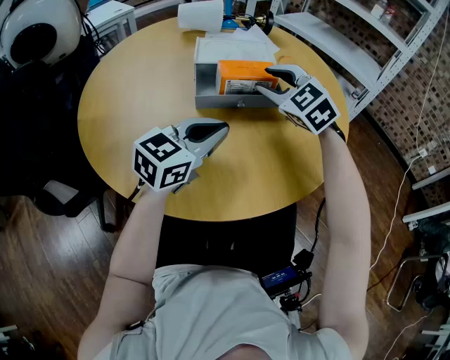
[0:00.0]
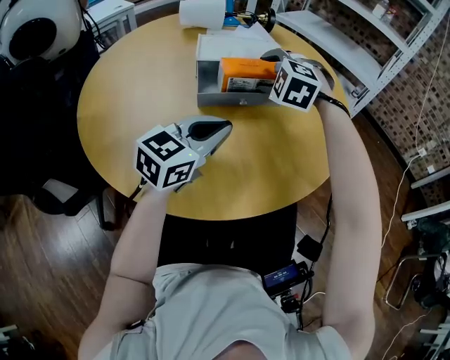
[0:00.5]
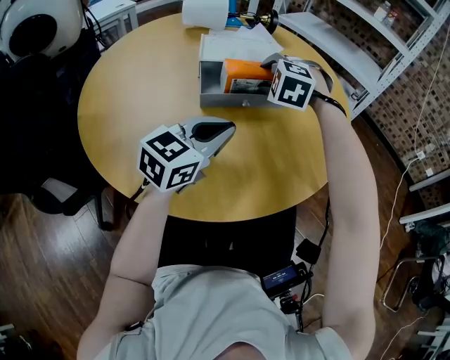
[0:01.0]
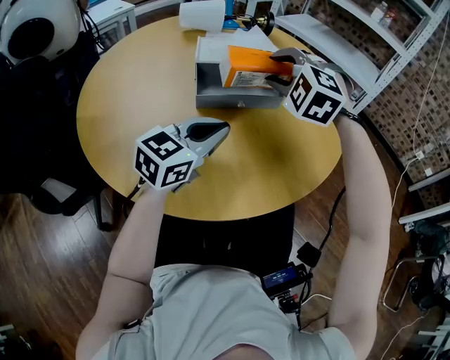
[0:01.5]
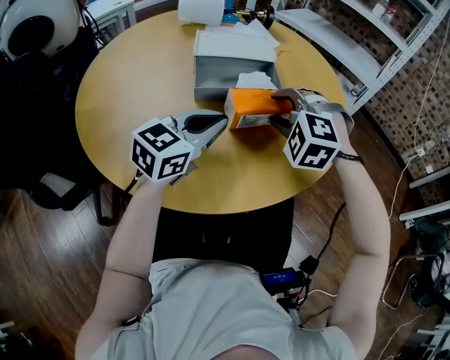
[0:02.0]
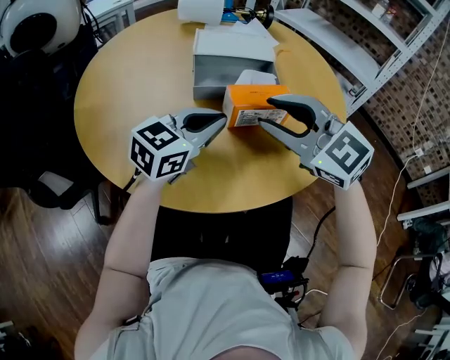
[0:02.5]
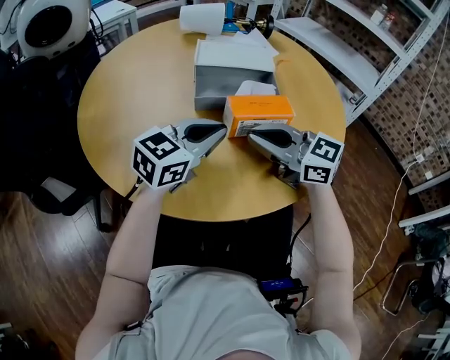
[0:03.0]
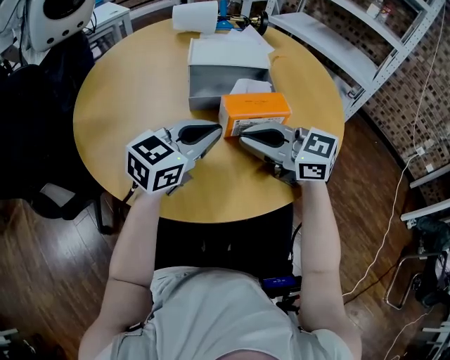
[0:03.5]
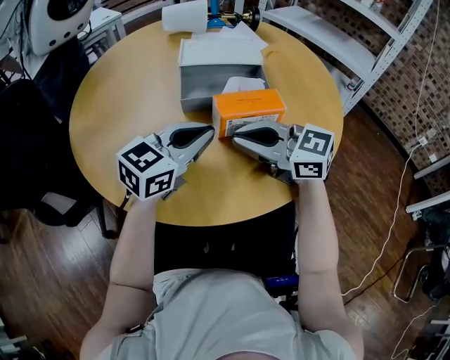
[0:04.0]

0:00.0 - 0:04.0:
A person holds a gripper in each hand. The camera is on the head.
0:00.0 - 0:02.0: The right gripper travels backward and to the right by approximately 10 cm, and rotates about 40 degrees.
0:02.0 - 0:04.0: The right gripper moves about 10 cm upward and comes back, points its fingers approximately 40 degrees further upward, and closes its fingers.

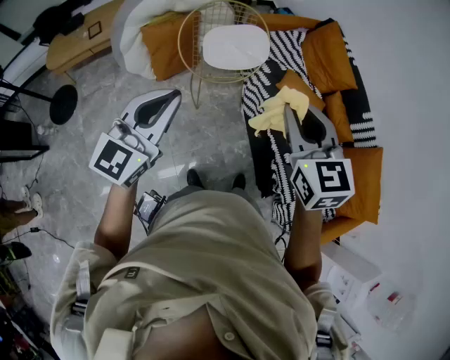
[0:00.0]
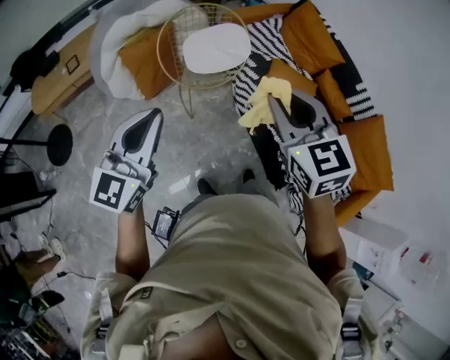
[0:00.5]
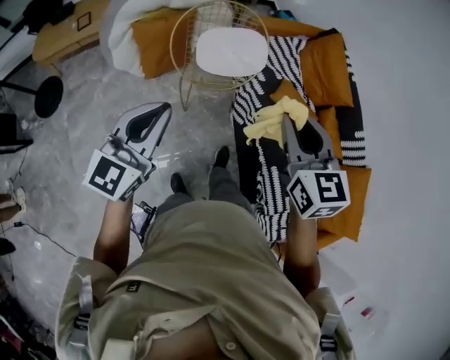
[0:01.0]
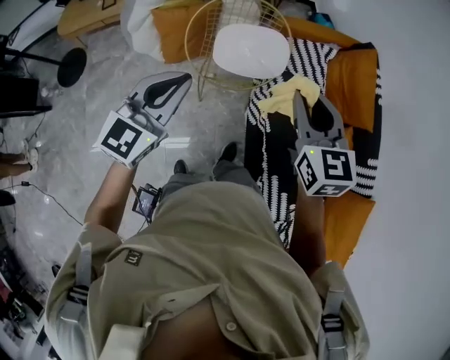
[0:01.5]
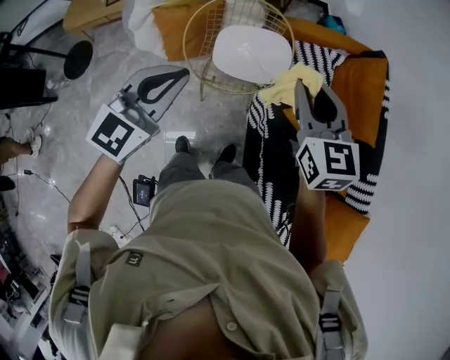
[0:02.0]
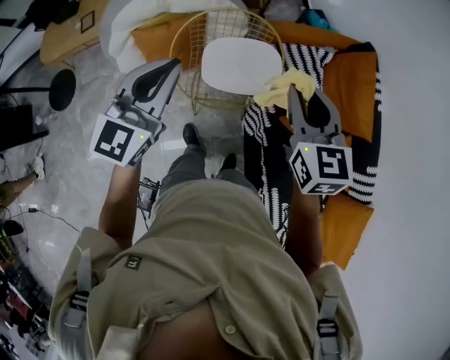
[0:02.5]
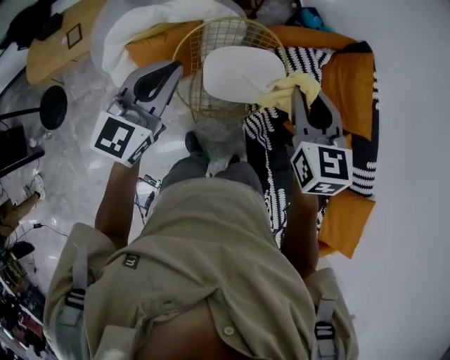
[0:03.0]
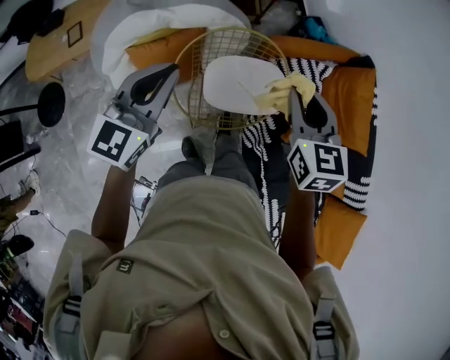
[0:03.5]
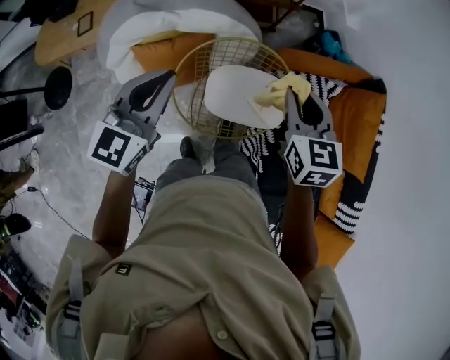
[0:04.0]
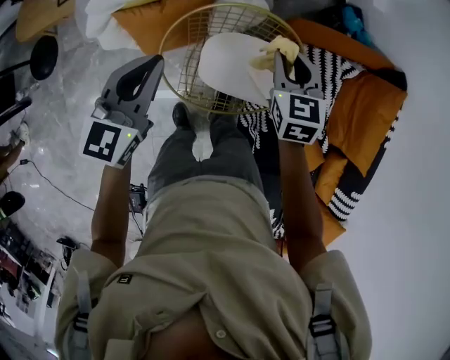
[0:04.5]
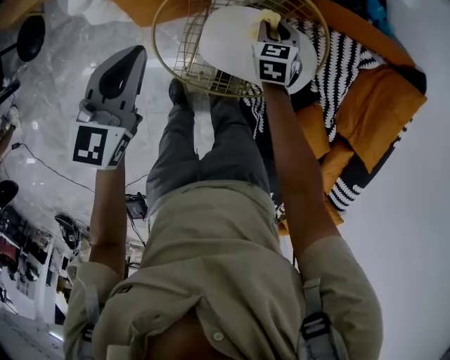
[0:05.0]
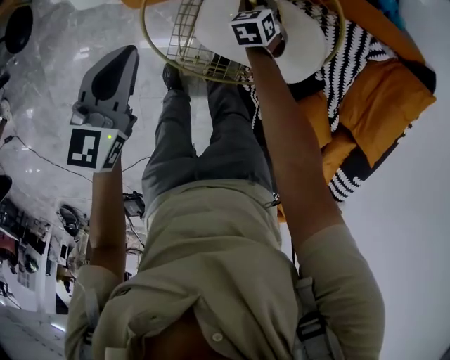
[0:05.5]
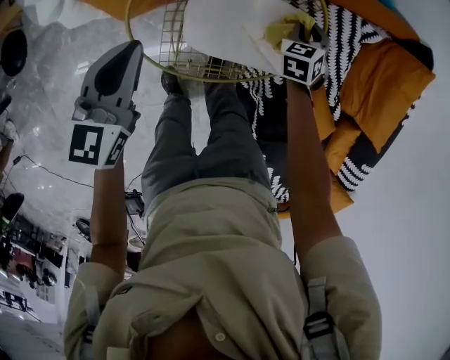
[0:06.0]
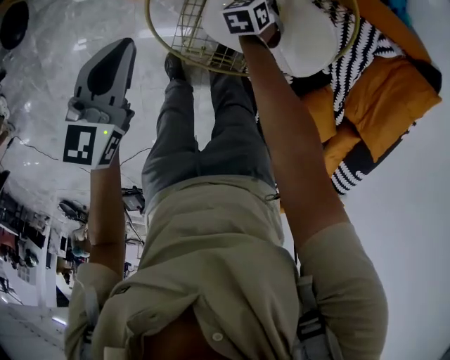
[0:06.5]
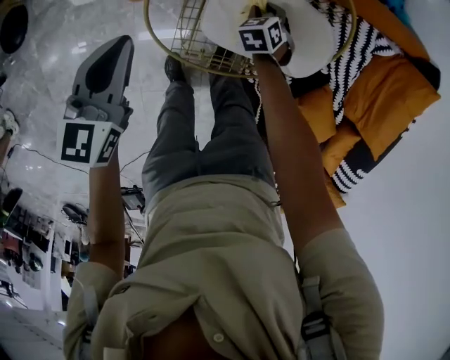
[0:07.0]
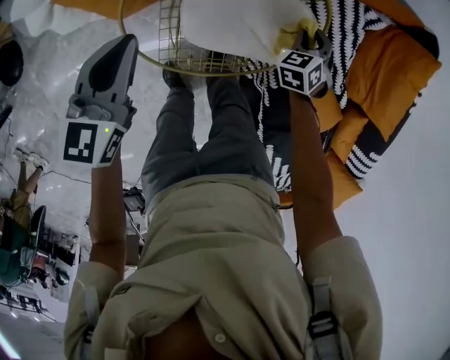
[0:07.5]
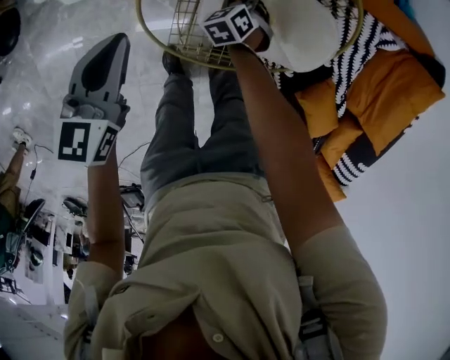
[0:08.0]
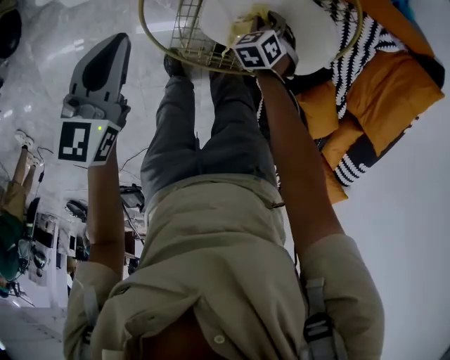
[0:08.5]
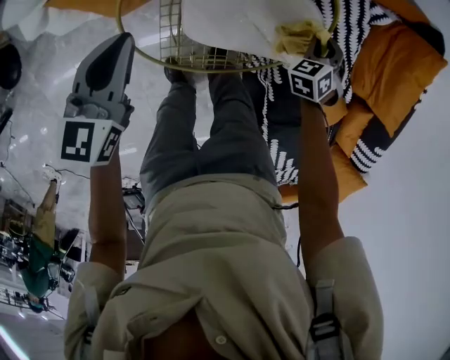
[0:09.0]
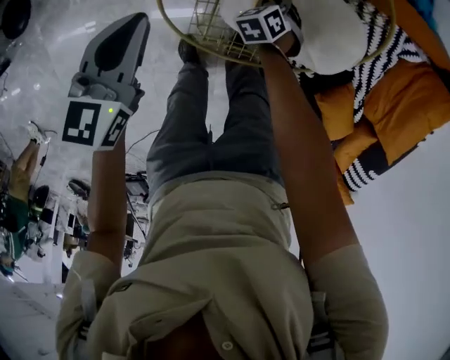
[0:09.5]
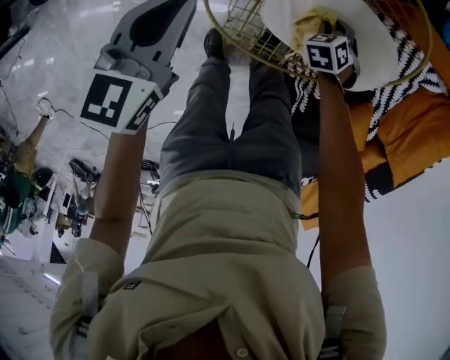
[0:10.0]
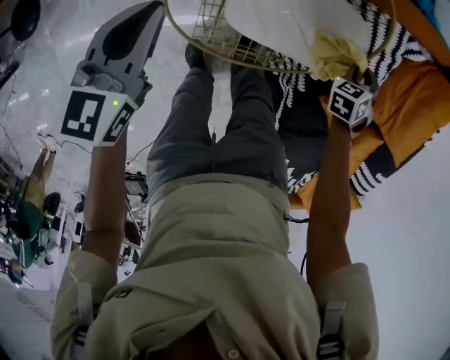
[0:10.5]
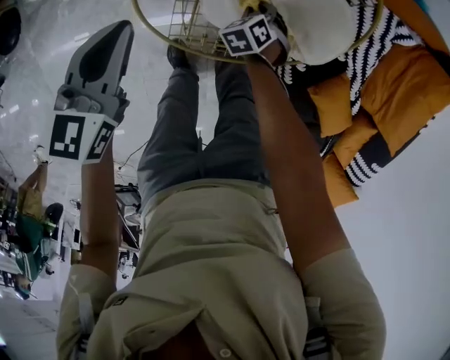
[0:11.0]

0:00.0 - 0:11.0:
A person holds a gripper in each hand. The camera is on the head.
0:00.0 - 0:02.0: Both grippers move forward, about 30 cm.
0:02.0 - 0:03.5: Both grippers travel together forward and to the left, approximately 25 cm.
0:03.5 - 0:05.5: The left gripper shifts some 30 cm downward, and rotates roughly 30 degrees. Meanwhile the right gripper heads downward, covering some 60 cm, and tips its fingers downward by some 40 degrees.
0:05.5 - 0:07.5: The left gripper moves about 5 cm, while the right gripper swings up and down, approximately 10 cm each way, with 2 reversals, and rotates approximately 20 degrees.
0:07.5 - 0:09.0: The right gripper goes downward and returns, about 15 cm each way.
0:09.0 - 0:11.0: The right gripper goes up and down, approximately 15 cm each way, reversing 2 times, and swivels some 20 degrees, while the left gripper ends up about 10 cm from where it was.

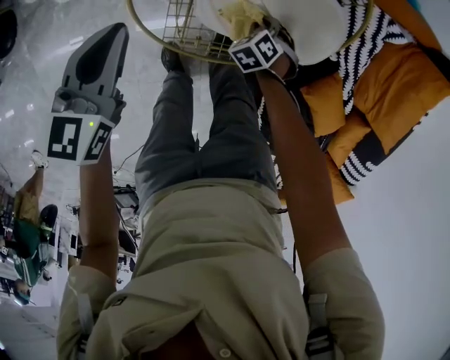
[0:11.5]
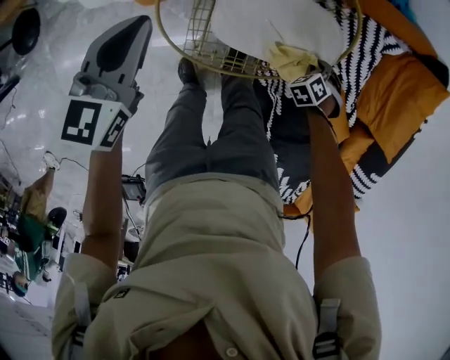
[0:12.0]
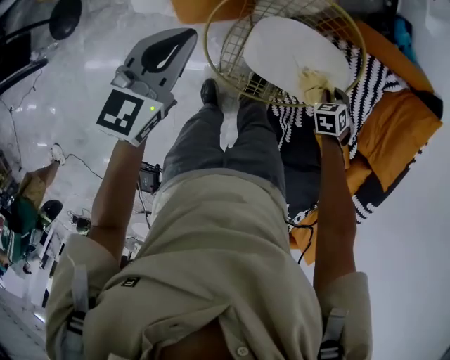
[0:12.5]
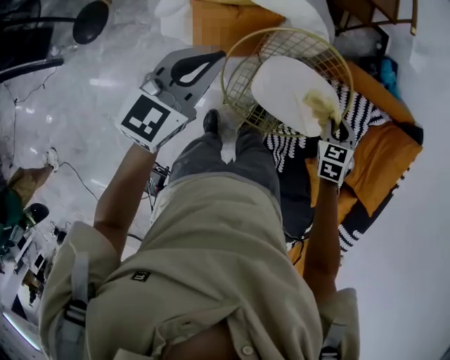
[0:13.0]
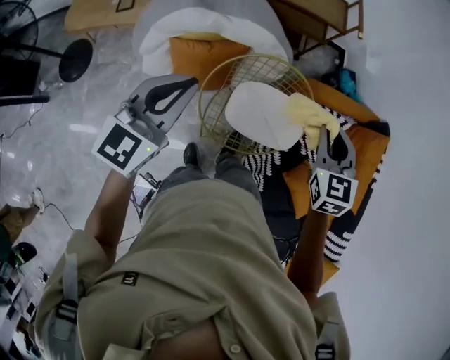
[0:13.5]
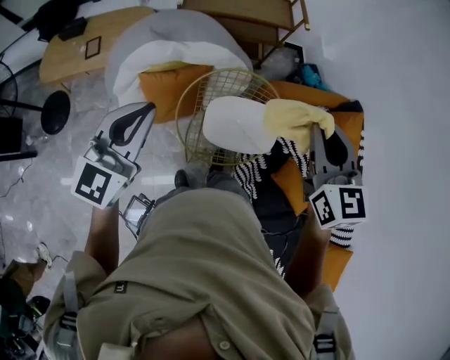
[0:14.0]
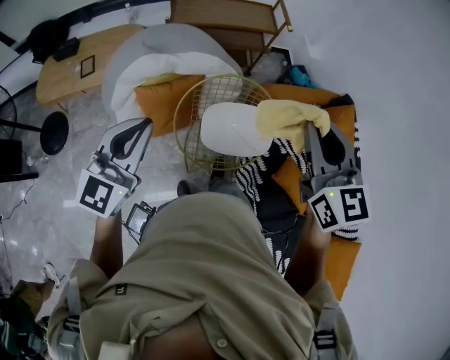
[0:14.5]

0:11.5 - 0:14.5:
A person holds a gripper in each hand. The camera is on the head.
0:11.5 - 0:13.0: The grippers both shift upward by some 30 cm. The right gripper turns by some 30 degrees.
0:13.0 - 0:14.5: The left gripper is displaced upward and backward by some 20 cm. Meanwhile the right gripper moves upward, approximately 50 cm, and points its fingers some 40 degrees further upward.

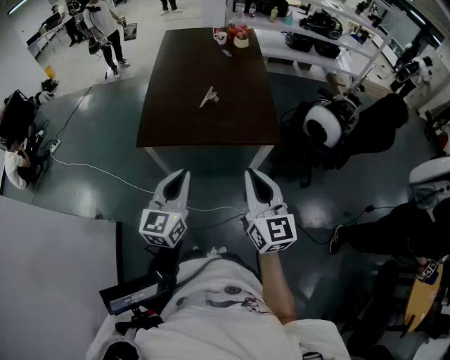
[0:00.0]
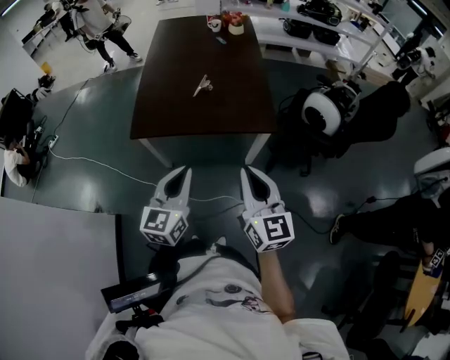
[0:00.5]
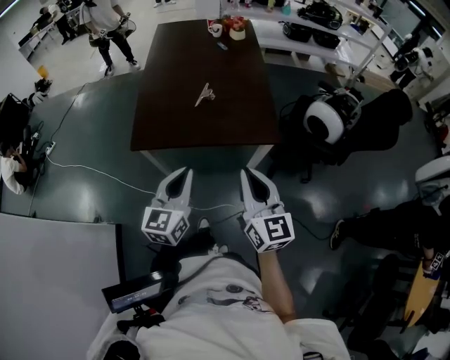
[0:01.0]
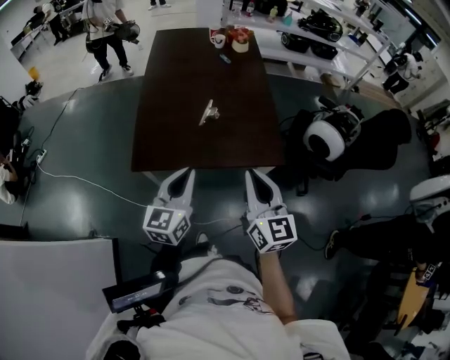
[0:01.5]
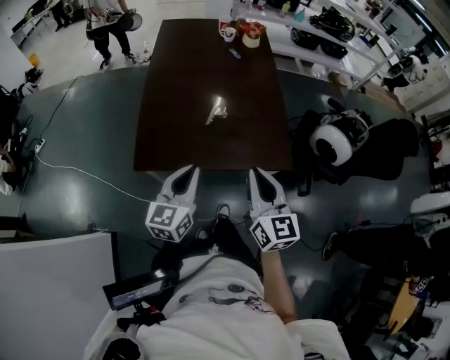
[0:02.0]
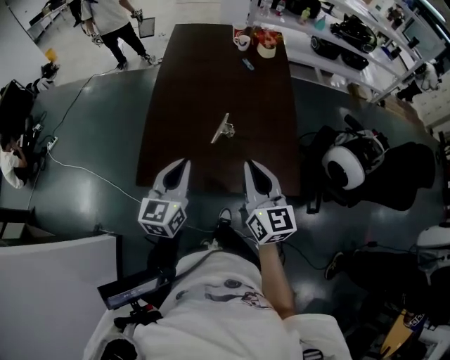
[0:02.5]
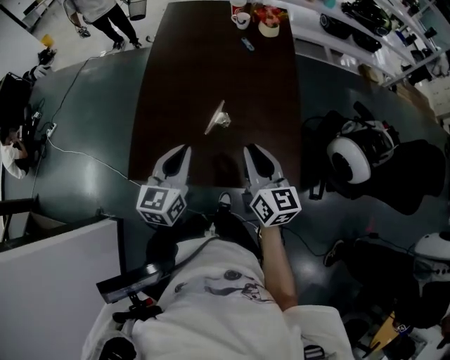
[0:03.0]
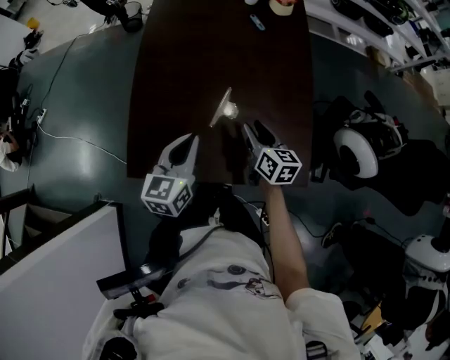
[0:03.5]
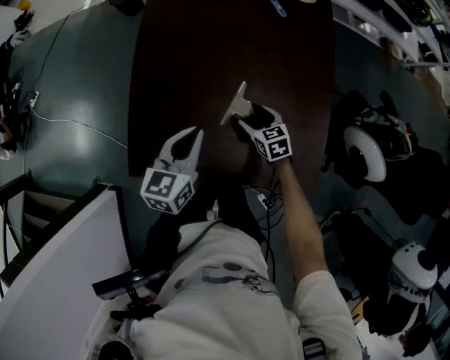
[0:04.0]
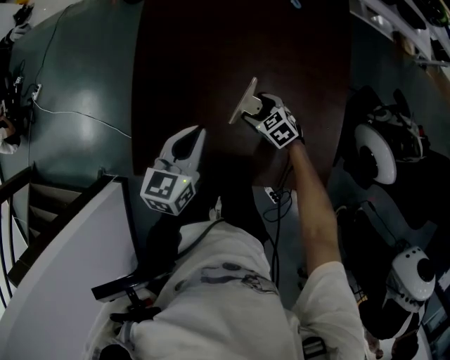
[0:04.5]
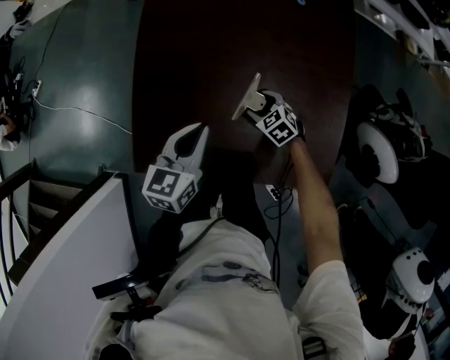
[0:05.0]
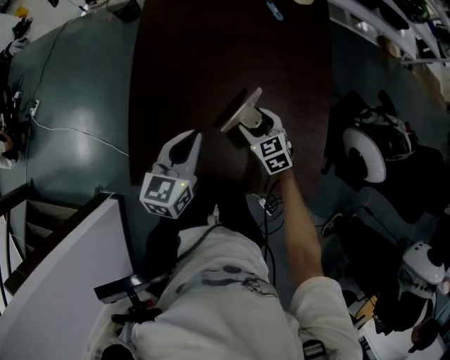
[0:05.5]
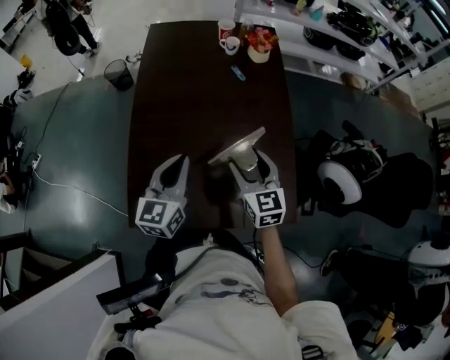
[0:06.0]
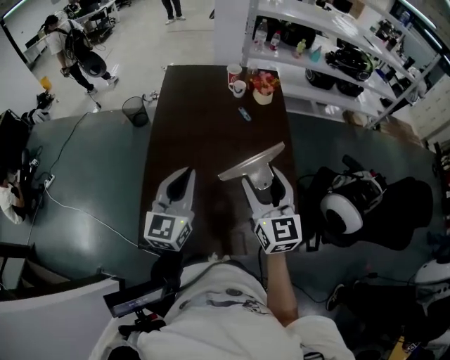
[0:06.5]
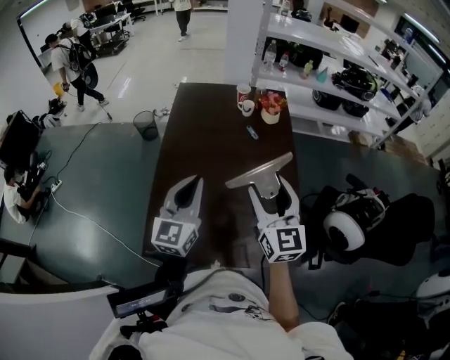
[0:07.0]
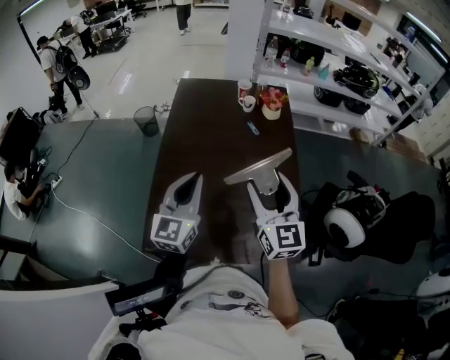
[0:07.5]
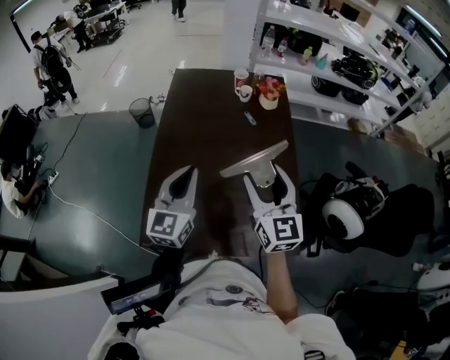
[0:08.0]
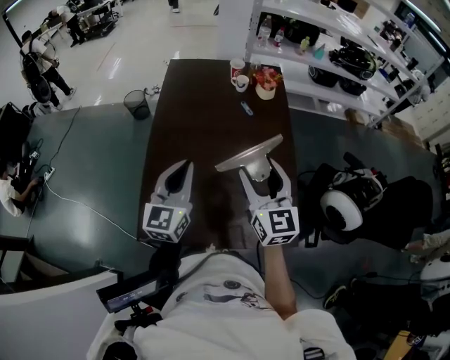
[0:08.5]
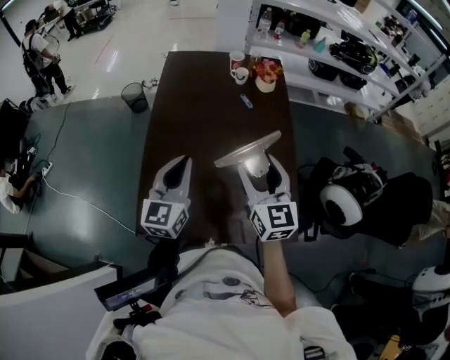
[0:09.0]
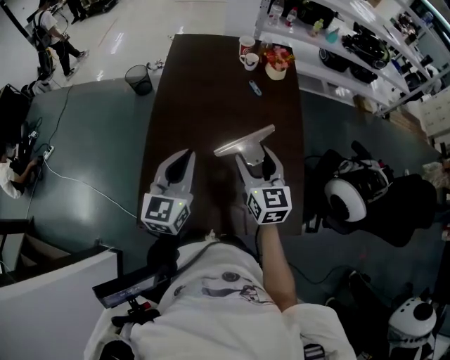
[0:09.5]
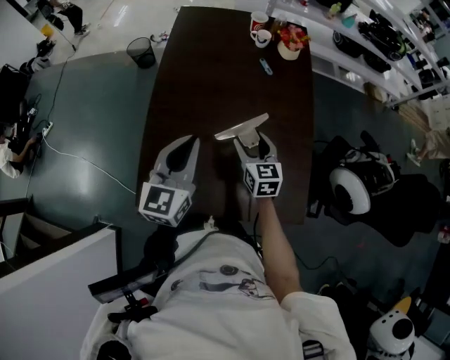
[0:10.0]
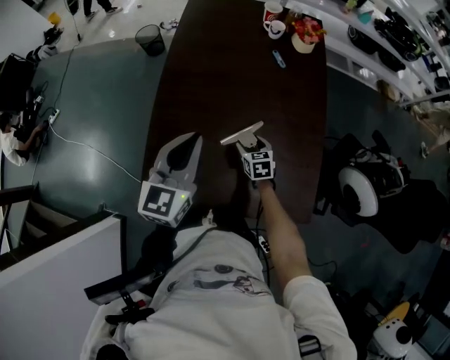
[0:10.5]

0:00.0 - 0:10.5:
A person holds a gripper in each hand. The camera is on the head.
0:00.0 - 0:02.0: The grippers both shift forward by roughly 15 cm.
0:02.0 - 0:04.0: The right gripper shifts some 40 cm downward and forward, tilts its fingers about 40 degrees downward, and opens, while the left gripper shifts approximately 25 cm forward and downward.
0:04.0 - 0:06.5: The left gripper shifts roughly 15 cm upward, and turns by roughly 30 degrees; the right gripper travels upward by about 35 cm, and points its fingers approximately 50 degrees further upward.
0:06.5 - 0:08.5: The grippers move only a little.
0:08.5 - 0:10.5: The right gripper goes roughly 35 cm downward, and angles its fingers downward, by about 40 degrees.
